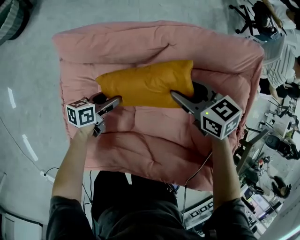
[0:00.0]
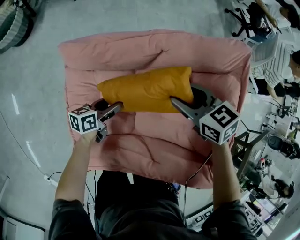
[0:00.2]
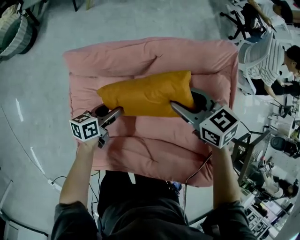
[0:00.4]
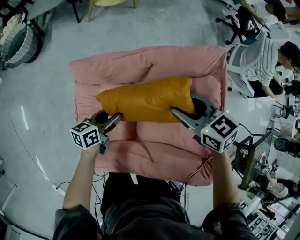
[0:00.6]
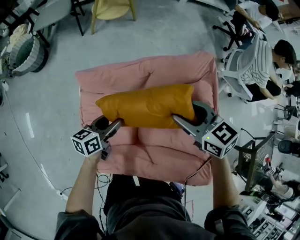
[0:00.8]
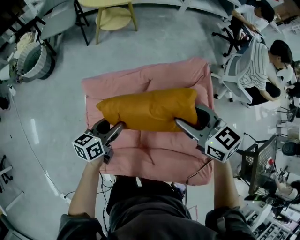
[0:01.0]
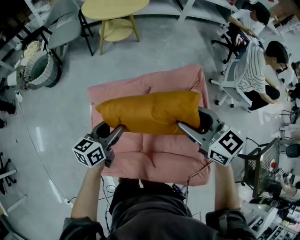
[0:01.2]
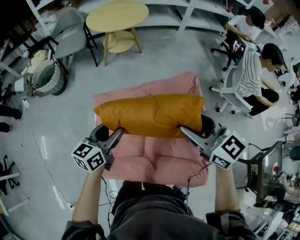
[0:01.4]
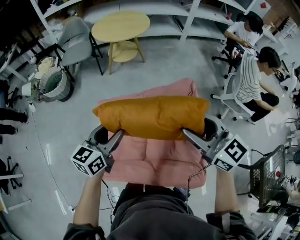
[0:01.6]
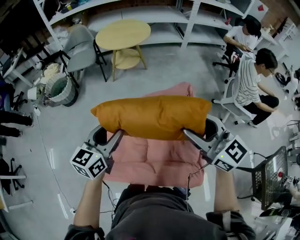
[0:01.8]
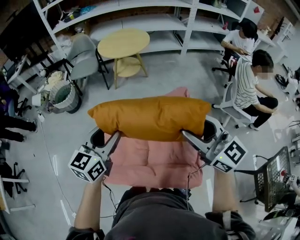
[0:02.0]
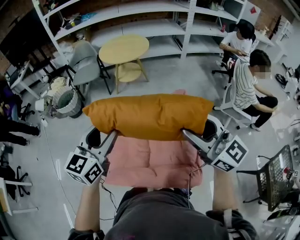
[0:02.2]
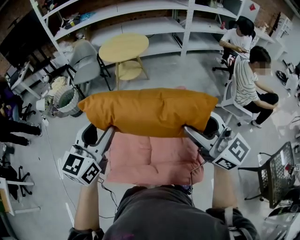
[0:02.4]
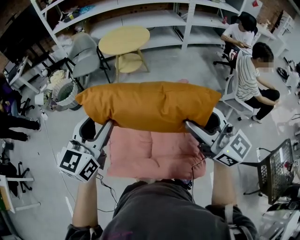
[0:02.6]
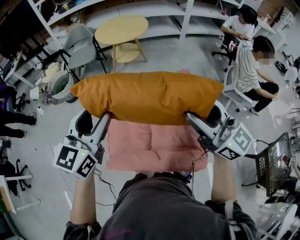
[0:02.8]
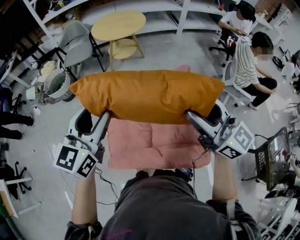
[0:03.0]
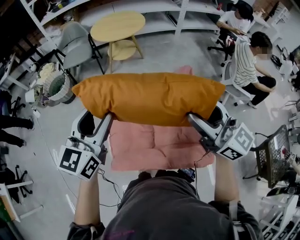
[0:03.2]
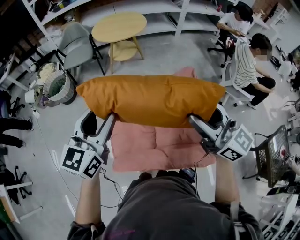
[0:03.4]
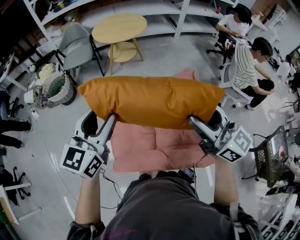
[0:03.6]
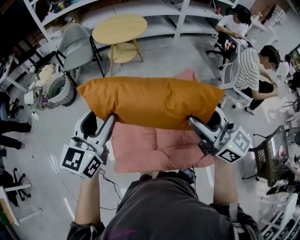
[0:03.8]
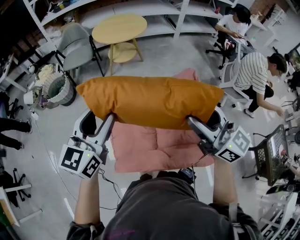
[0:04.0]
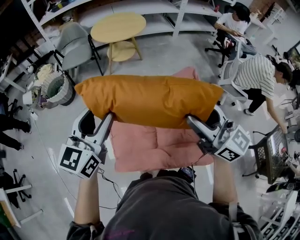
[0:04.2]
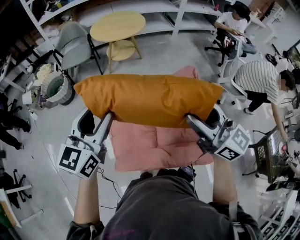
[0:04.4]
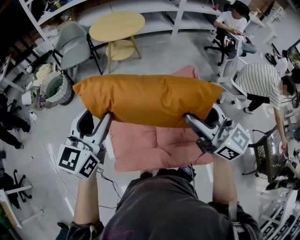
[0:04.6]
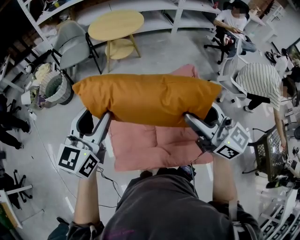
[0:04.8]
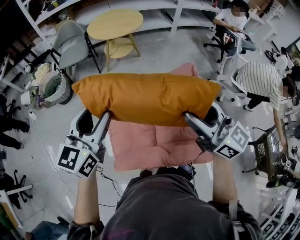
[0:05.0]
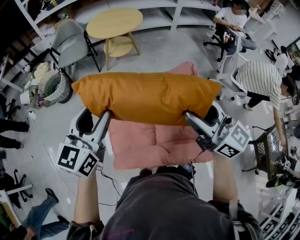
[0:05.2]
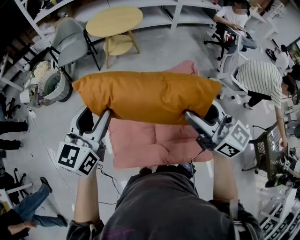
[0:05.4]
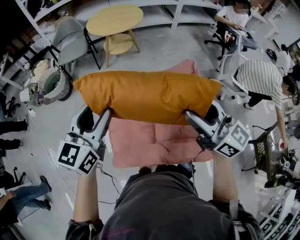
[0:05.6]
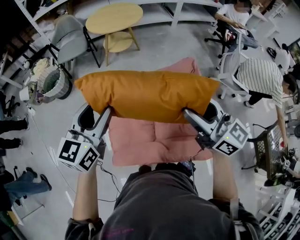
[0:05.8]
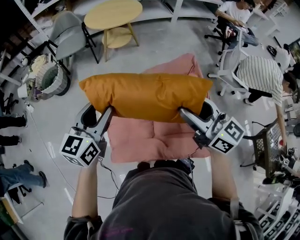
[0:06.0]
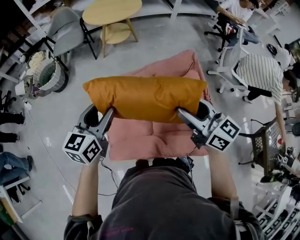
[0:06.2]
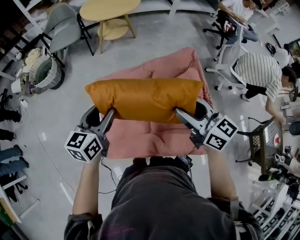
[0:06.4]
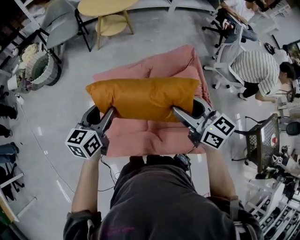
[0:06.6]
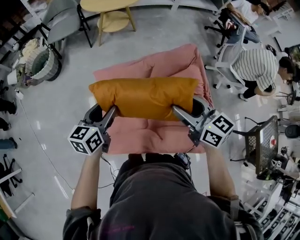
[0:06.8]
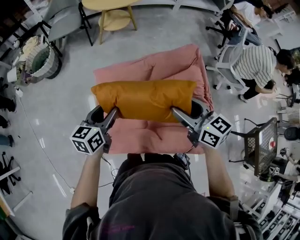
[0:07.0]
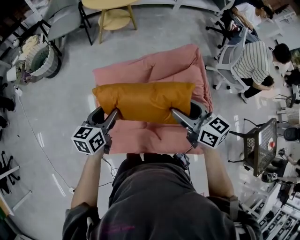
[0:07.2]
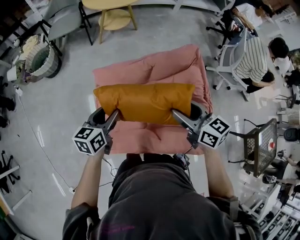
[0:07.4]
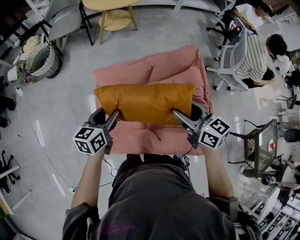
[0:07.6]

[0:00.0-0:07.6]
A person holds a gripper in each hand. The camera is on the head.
0:00.0 to 0:01.6: The two grippers go roughly 50 cm upward. The left gripper turns by some 50 degrees, while the right gripper tilts its fingers about 40 degrees upward.
0:01.6 to 0:03.0: The right gripper heads upward and backward, covering some 10 cm. The left gripper moves upward, approximately 20 cm, and turns by approximately 20 degrees.
0:03.0 to 0:04.6: Both grippers move to the left, approximately 5 cm.
0:04.6 to 0:06.0: The grippers both shift downward by roughly 5 cm.
0:06.0 to 0:07.6: Both grippers travel together downward, some 15 cm. The left gripper rotates roughly 20 degrees. The right gripper swivels roughly 20 degrees.

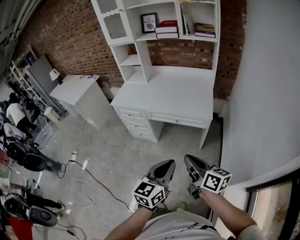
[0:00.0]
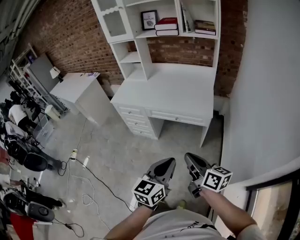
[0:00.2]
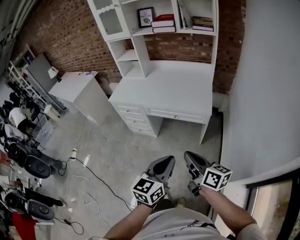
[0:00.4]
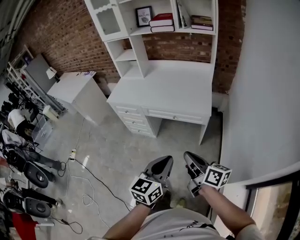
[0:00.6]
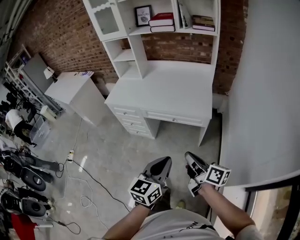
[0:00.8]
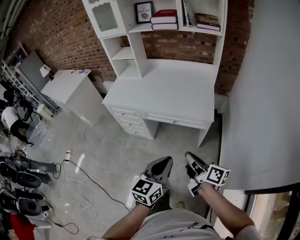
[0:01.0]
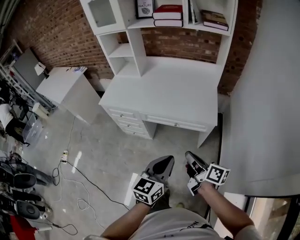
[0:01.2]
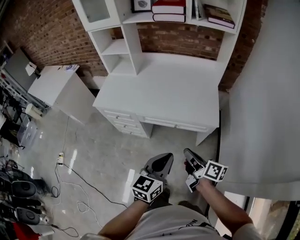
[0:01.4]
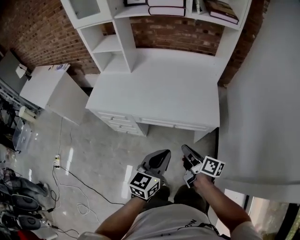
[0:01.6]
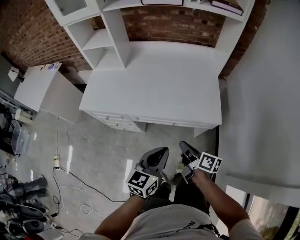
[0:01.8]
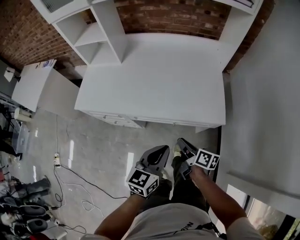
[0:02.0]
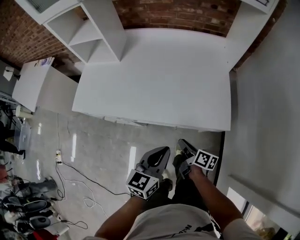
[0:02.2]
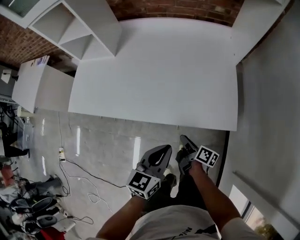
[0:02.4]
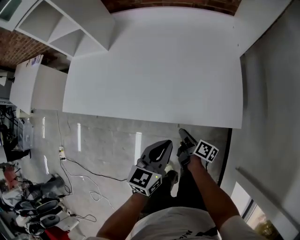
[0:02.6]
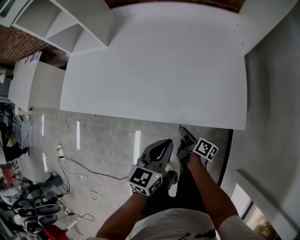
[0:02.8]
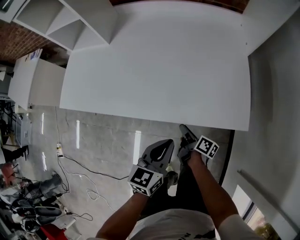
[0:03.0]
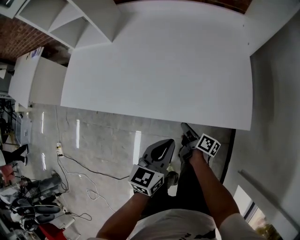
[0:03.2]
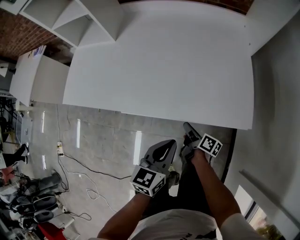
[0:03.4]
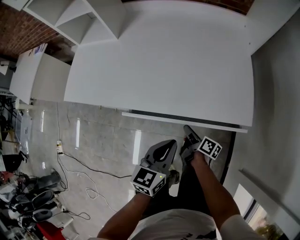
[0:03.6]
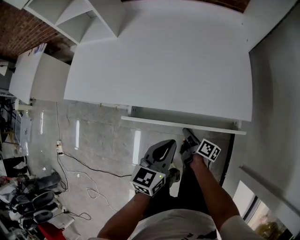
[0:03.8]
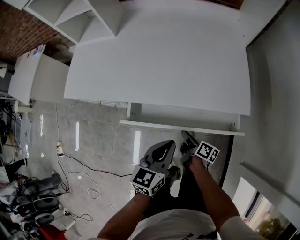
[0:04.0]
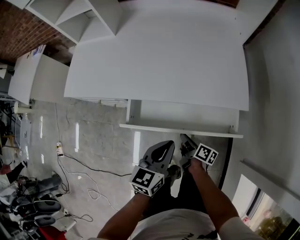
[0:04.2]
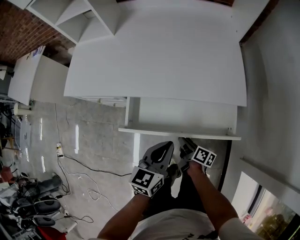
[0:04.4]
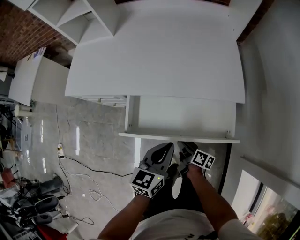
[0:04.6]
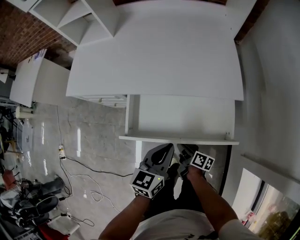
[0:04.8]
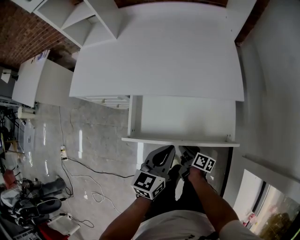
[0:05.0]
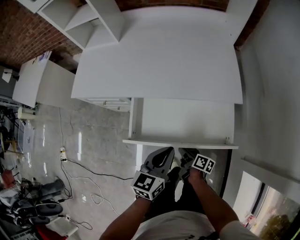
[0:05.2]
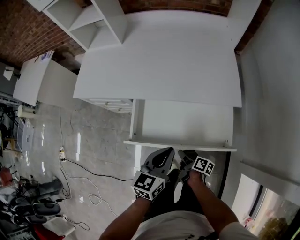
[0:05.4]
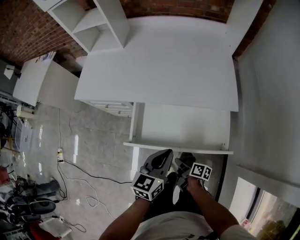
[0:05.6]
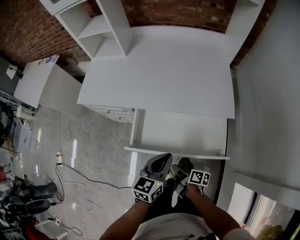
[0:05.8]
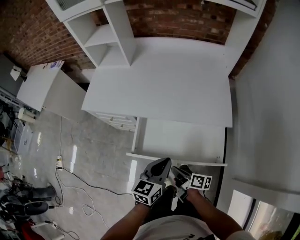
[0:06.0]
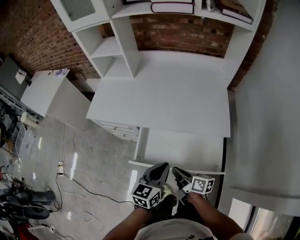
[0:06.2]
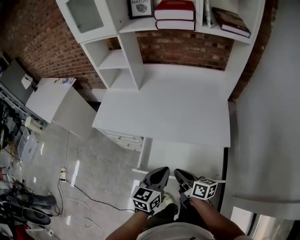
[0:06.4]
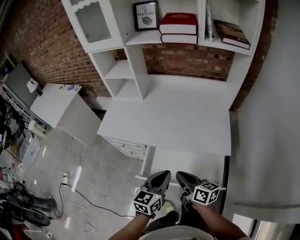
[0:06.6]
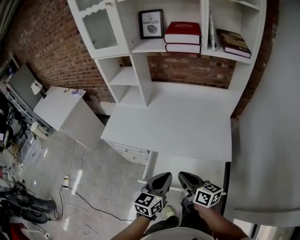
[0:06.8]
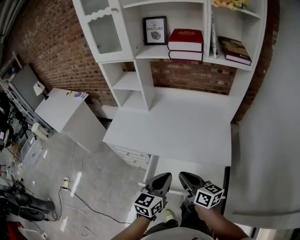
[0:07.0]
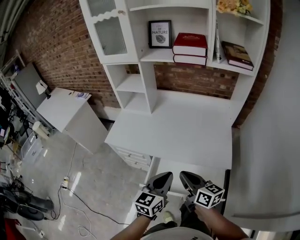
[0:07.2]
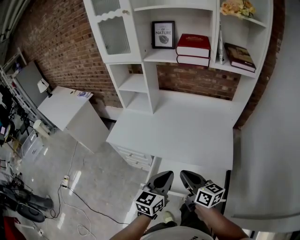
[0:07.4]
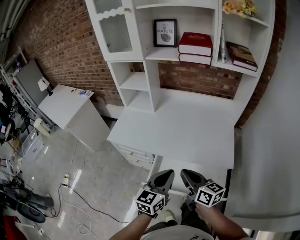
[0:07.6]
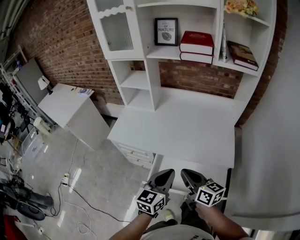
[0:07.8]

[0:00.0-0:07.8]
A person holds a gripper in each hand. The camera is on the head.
0:00.0 to 0:01.6: The right gripper shifts roughly 30 cm forward and downward, and swivels approximately 30 degrees, while the left gripper heads forward, covering about 30 cm.
0:01.6 to 0:03.2: The grippers both shift downward and forward by approximately 30 cm.
0:03.2 to 0:04.6: The right gripper goes approximately 20 cm backward. Meanwhile the left gripper goes about 15 cm backward.
0:04.6 to 0:06.2: The right gripper heads upward, covering roughly 20 cm, and turns by about 20 degrees. Meanwhile the left gripper heads upward, covering roughly 10 cm.
0:06.2 to 0:07.8: The right gripper heads upward, covering about 20 cm, and changes its angle by about 30 degrees, while the left gripper shifts approximately 15 cm upward.

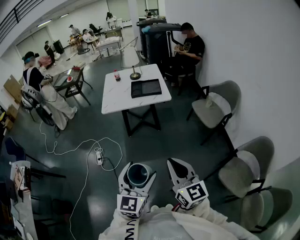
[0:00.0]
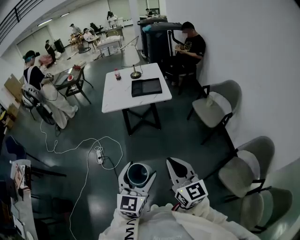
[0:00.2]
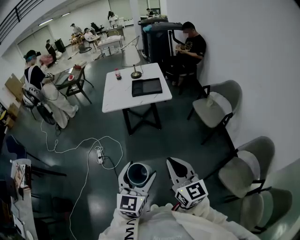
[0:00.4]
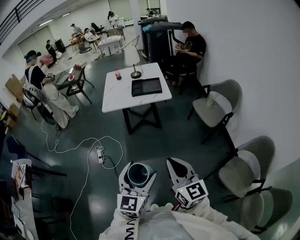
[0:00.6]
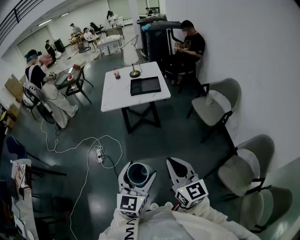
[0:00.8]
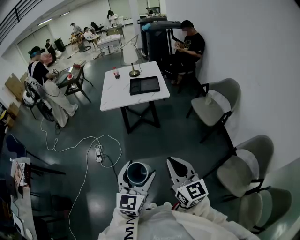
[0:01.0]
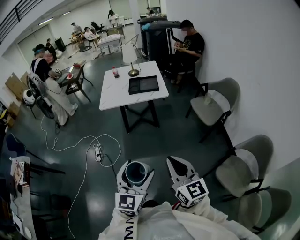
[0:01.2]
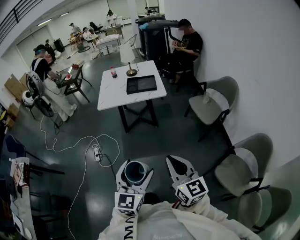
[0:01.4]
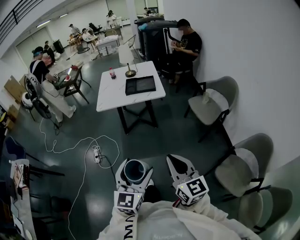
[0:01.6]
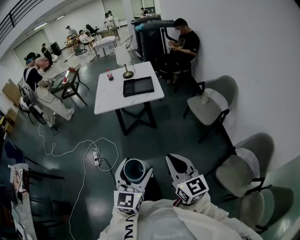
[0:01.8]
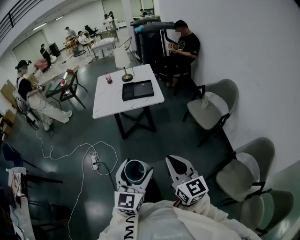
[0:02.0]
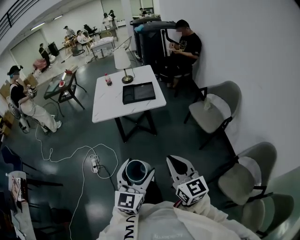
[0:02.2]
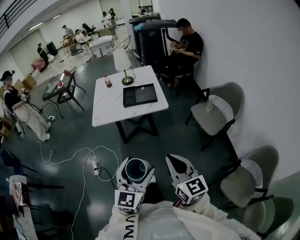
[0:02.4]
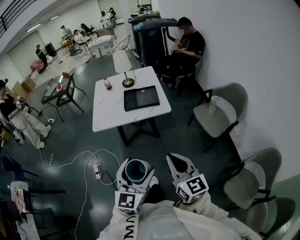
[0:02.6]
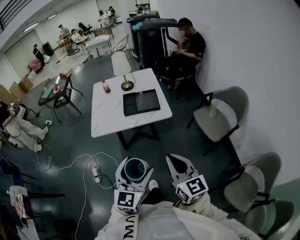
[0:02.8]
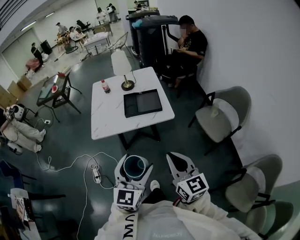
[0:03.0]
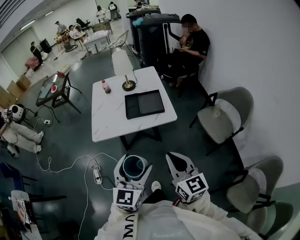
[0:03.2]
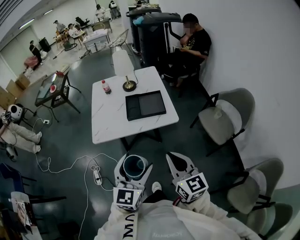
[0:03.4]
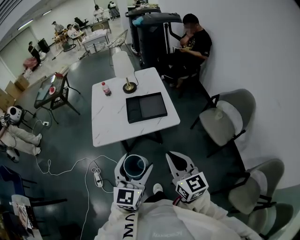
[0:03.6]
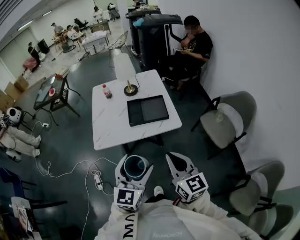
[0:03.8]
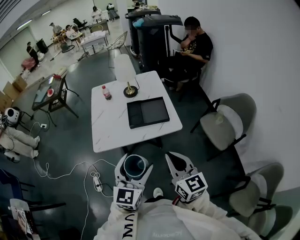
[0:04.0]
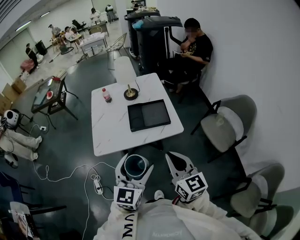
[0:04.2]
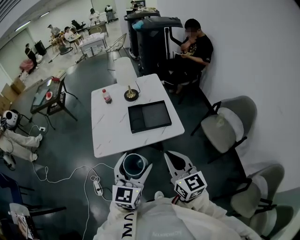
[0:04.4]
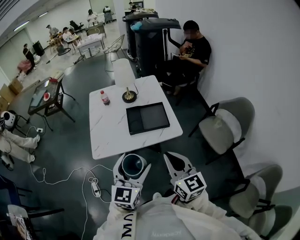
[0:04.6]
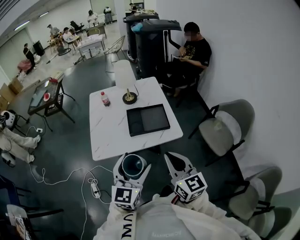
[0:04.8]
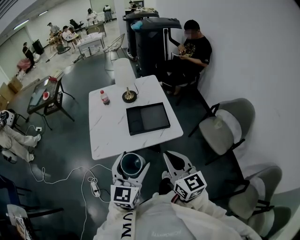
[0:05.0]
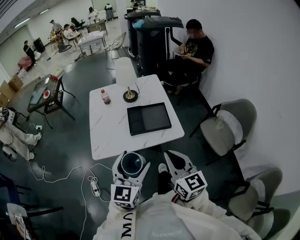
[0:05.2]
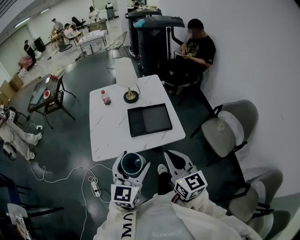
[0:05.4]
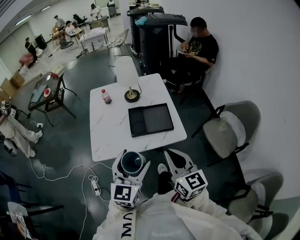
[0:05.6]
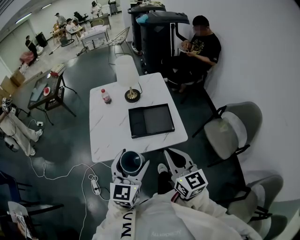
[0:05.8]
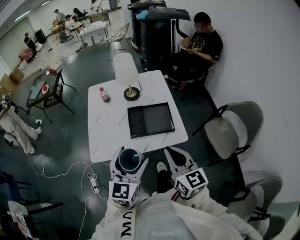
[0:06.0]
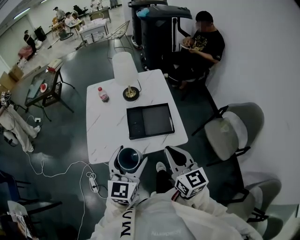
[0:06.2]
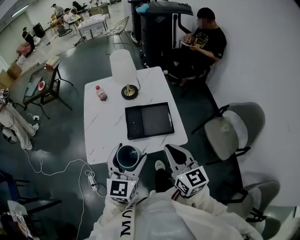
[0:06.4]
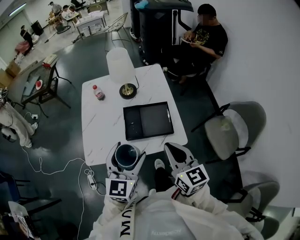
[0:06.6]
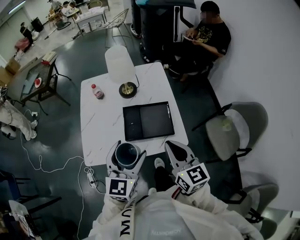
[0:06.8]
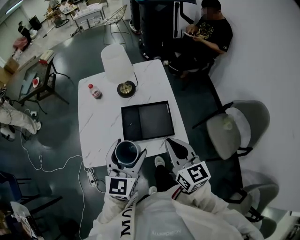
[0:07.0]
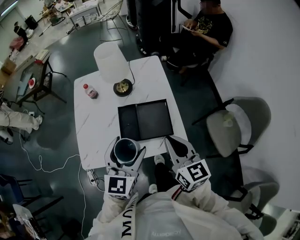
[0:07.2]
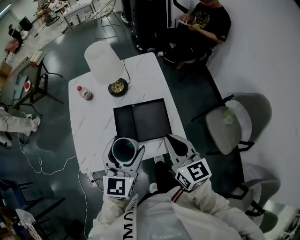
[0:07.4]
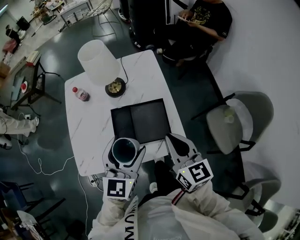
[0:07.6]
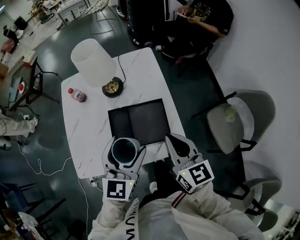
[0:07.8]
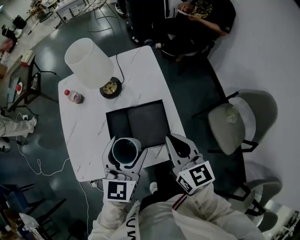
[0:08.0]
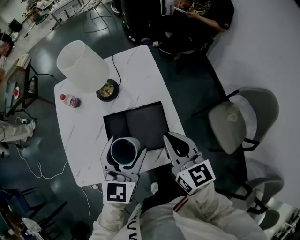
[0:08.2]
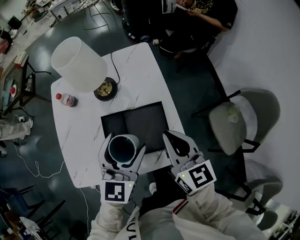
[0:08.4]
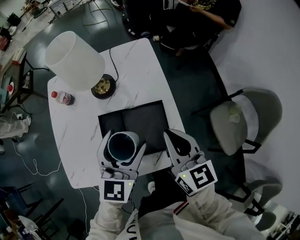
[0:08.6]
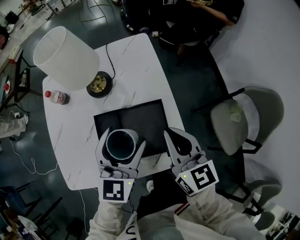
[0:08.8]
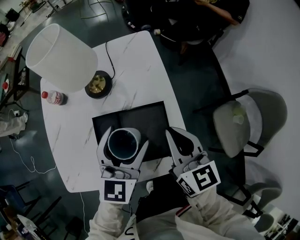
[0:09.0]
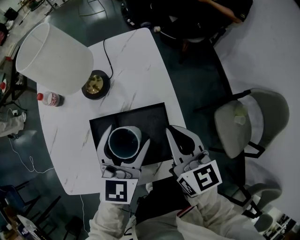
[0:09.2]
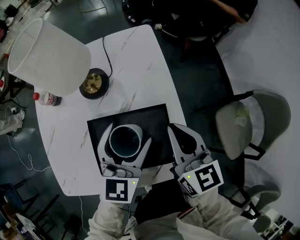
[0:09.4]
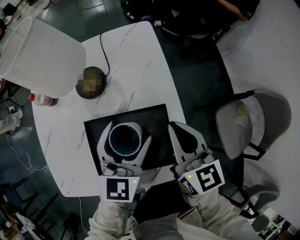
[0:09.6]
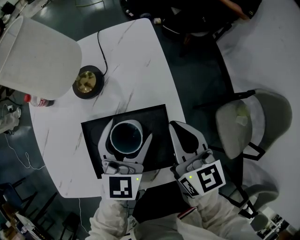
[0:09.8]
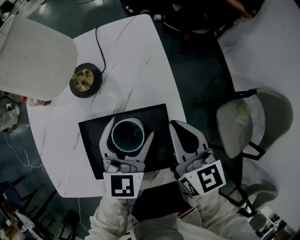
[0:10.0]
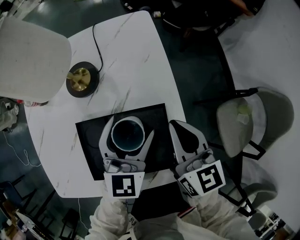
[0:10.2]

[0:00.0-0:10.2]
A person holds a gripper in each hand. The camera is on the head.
0:00.0 to 0:01.4: The right gripper moves to the right, approximately 5 cm.
0:01.4 to 0:03.0: Both grippers move forward, roughly 35 cm.
0:03.0 to 0:04.4: The two grippers go roughly 15 cm forward and to the left.
0:04.4 to 0:05.8: The two grippers go approximately 10 cm forward.
0:05.8 to 0:07.2: The two grippers go roughly 15 cm forward.
0:07.2 to 0:08.8: The two grippers go roughly 15 cm forward and downward.
0:08.8 to 0:10.2: The two grippers go about 10 cm downward and forward.
